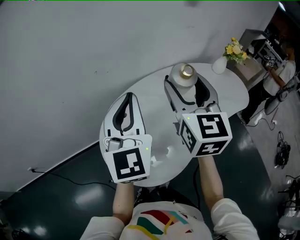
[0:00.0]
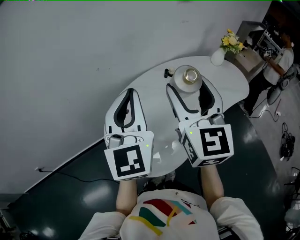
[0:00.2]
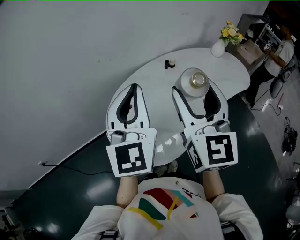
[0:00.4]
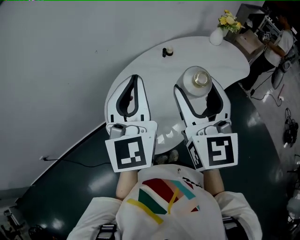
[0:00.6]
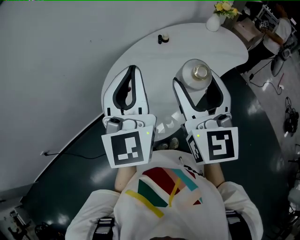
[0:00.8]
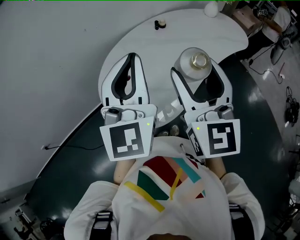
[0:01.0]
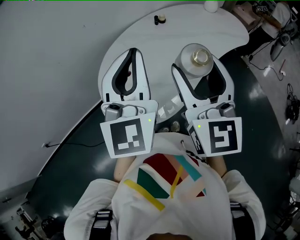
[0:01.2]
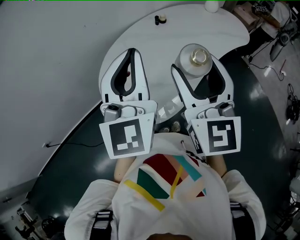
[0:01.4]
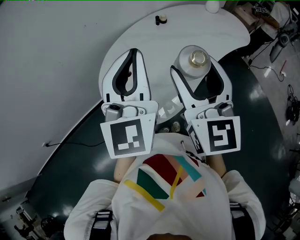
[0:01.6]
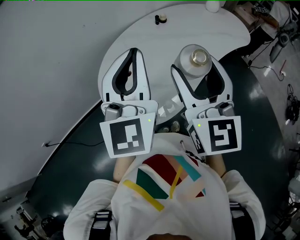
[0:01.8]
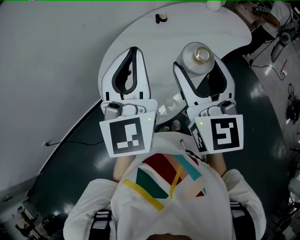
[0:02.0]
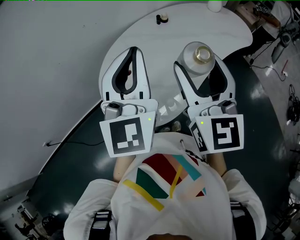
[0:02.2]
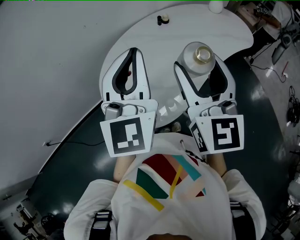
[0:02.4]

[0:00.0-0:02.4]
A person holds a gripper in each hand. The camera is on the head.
0:00.0 to 0:01.2: The left gripper shifts some 15 cm backward and to the right. The right gripper heads backward, covering roughly 20 cm.
0:01.2 to 0:02.4: The grippers stay close to where they were, moving slightly.

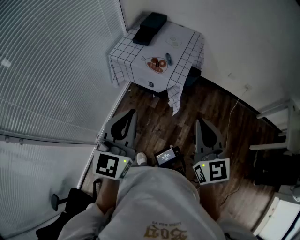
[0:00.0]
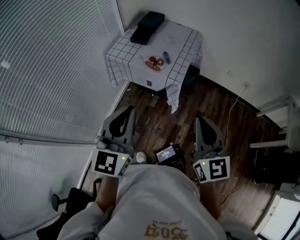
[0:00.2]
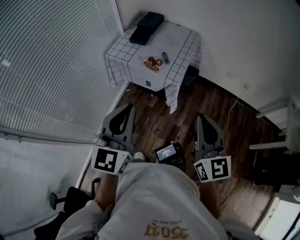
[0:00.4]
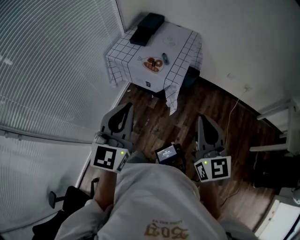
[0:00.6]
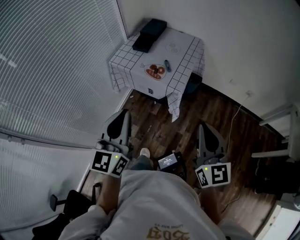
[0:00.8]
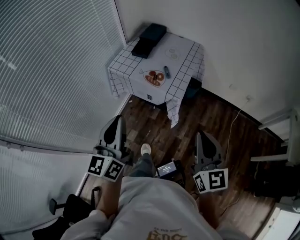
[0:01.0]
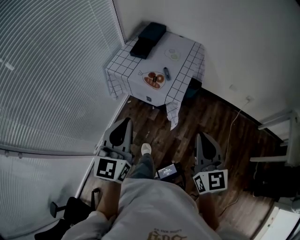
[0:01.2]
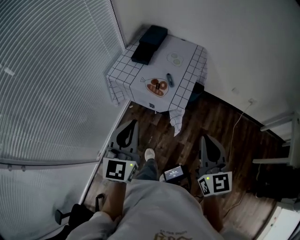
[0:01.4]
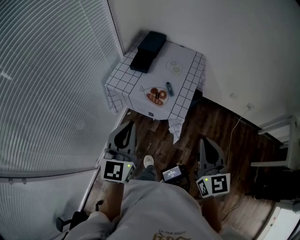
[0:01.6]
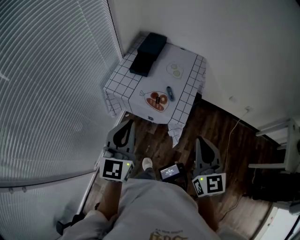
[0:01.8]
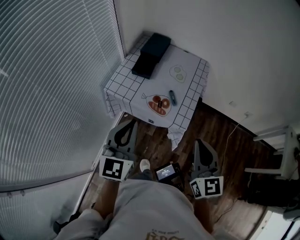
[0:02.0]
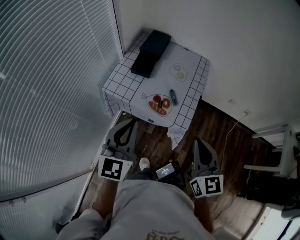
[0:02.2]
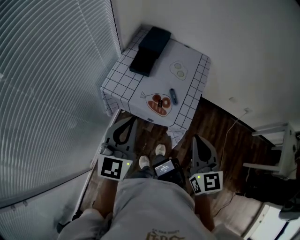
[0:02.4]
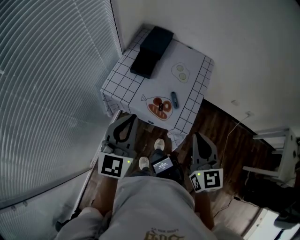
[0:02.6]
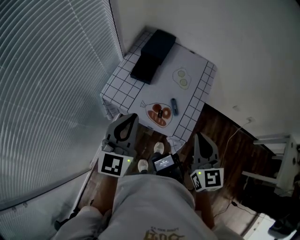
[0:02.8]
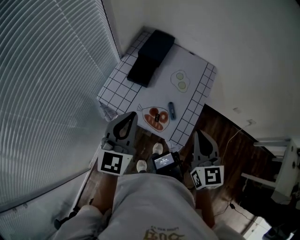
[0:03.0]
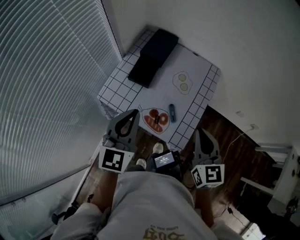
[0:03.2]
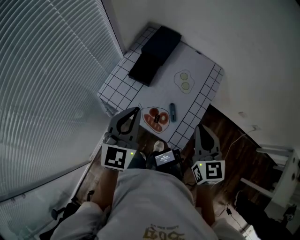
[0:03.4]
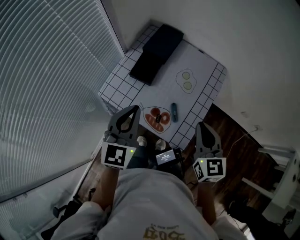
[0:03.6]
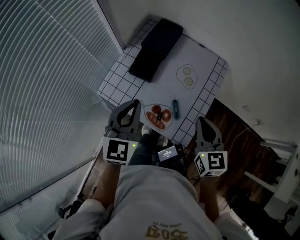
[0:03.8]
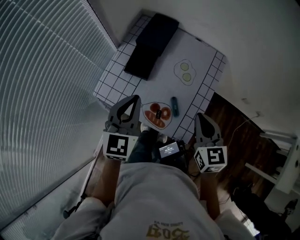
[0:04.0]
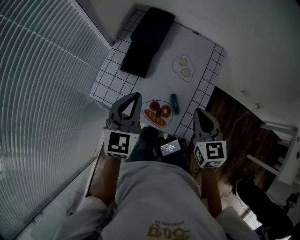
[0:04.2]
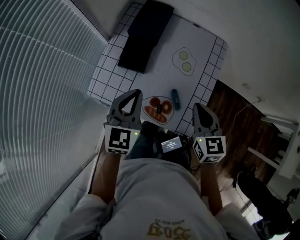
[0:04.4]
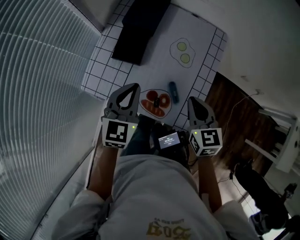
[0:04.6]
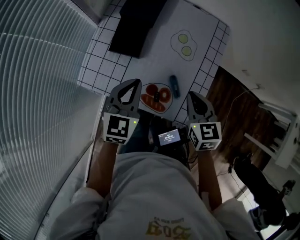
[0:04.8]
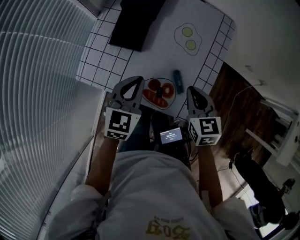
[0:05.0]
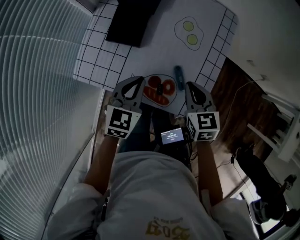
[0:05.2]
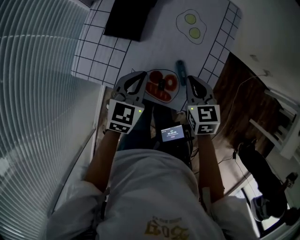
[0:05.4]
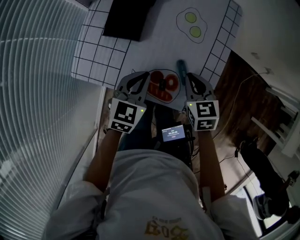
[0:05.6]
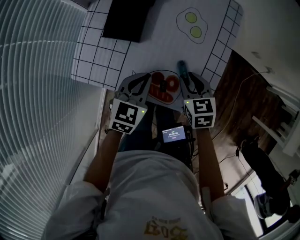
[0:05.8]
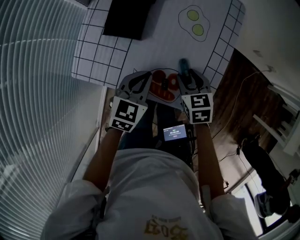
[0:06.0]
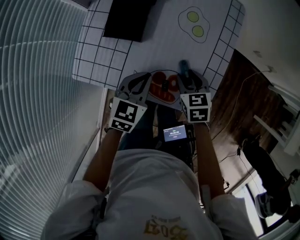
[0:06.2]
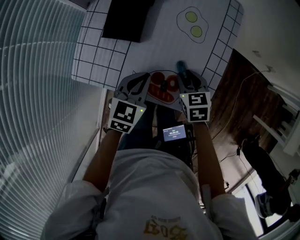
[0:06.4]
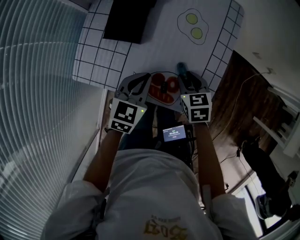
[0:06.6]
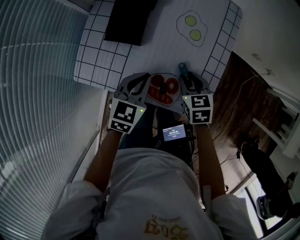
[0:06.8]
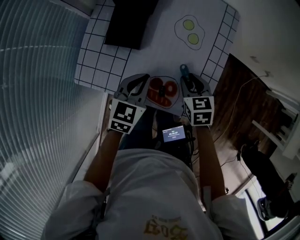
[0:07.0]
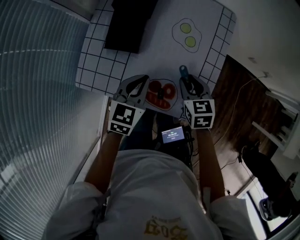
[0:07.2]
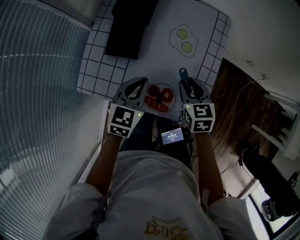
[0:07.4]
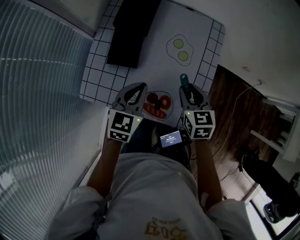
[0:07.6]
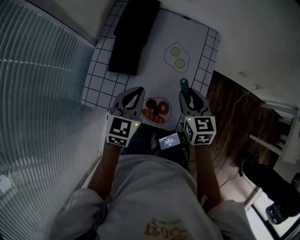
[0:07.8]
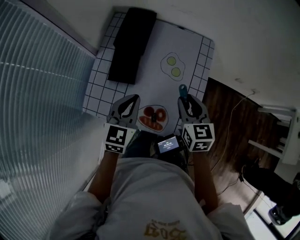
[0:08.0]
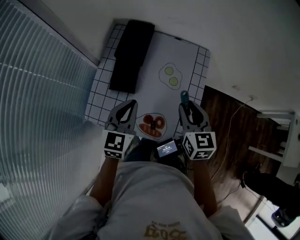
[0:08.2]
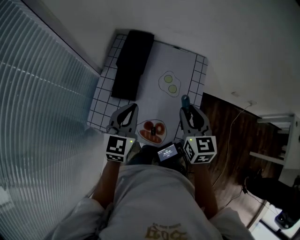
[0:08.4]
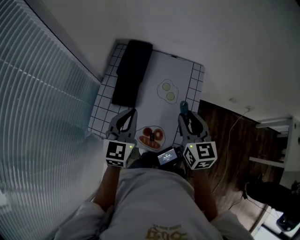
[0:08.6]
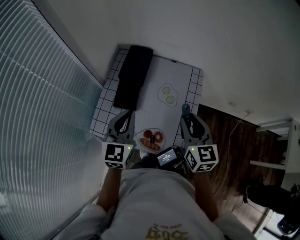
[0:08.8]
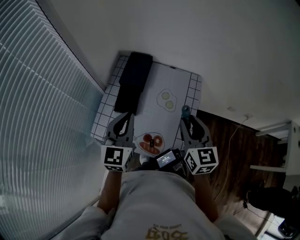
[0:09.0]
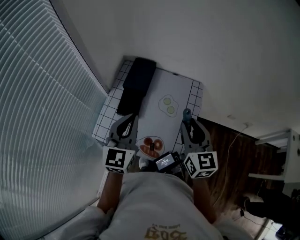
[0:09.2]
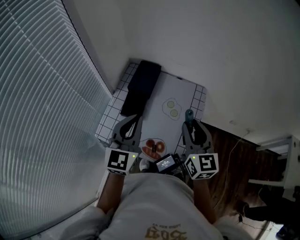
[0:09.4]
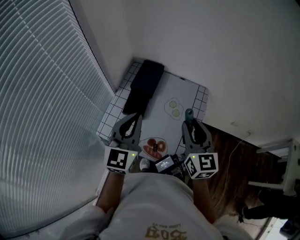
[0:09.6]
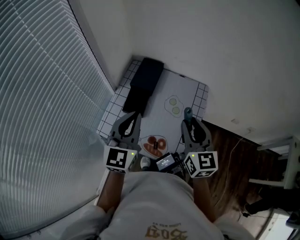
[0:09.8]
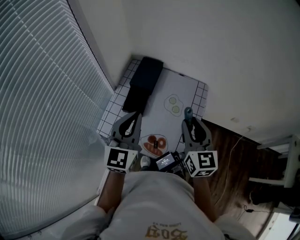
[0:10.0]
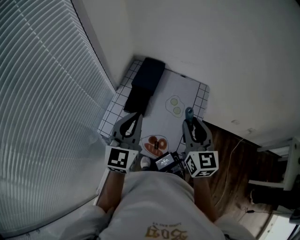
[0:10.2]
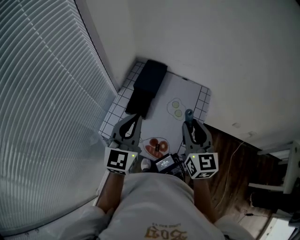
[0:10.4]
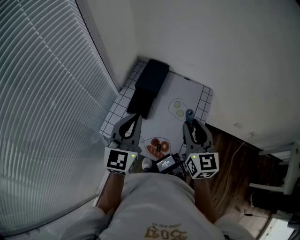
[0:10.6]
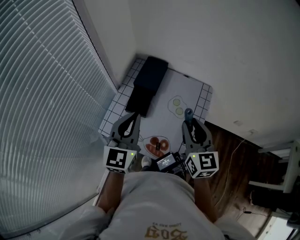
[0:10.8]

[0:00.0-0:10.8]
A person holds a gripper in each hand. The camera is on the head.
0:00.0 to 0:01.6: Both grippers move forward, approximately 15 cm.
0:01.6 to 0:03.0: The two grippers go about 25 cm forward.
0:03.0 to 0:04.6: The two grippers go about 20 cm downward and forward.
0:04.6 to 0:06.2: The grippers both shift downward by about 15 cm. The right gripper rotates approximately 20 degrees, and opens up. Meanwhile the left gripper swivels about 20 degrees.
0:06.2 to 0:07.8: The grippers both shift upward by some 10 cm. The right gripper rotates about 20 degrees.
0:07.8 to 0:09.2: Both grippers travel together upward, some 20 cm. The left gripper changes its angle by approximately 30 degrees; the right gripper swivels approximately 30 degrees.
0:09.2 to 0:10.8: There are only small adjustments of the grippers.

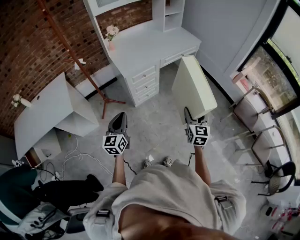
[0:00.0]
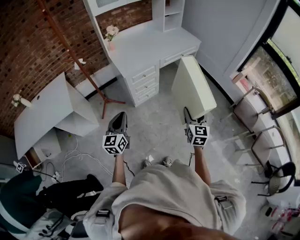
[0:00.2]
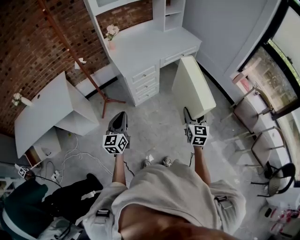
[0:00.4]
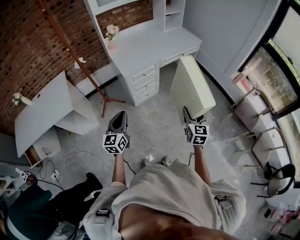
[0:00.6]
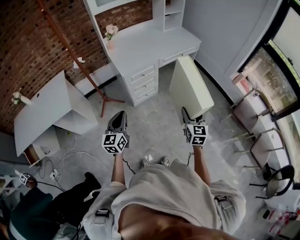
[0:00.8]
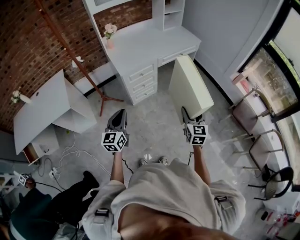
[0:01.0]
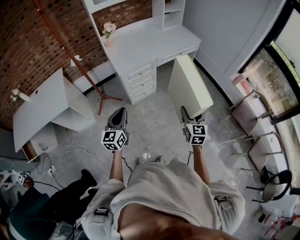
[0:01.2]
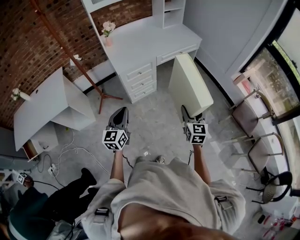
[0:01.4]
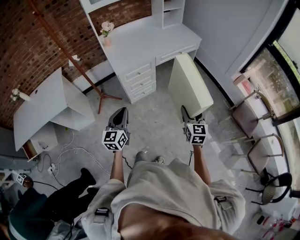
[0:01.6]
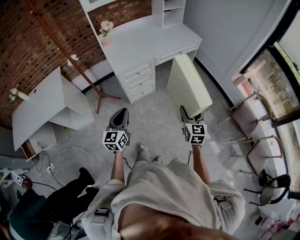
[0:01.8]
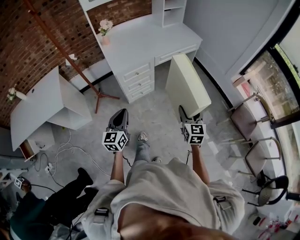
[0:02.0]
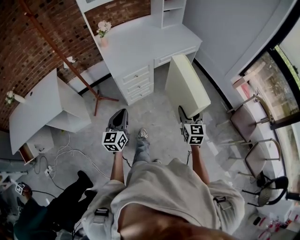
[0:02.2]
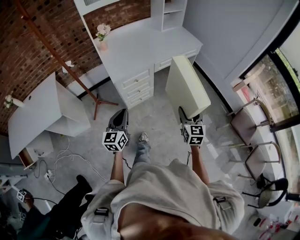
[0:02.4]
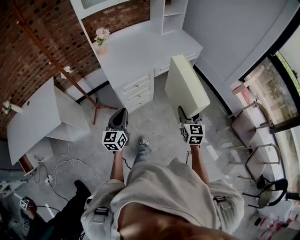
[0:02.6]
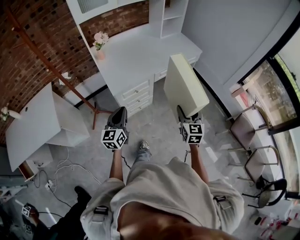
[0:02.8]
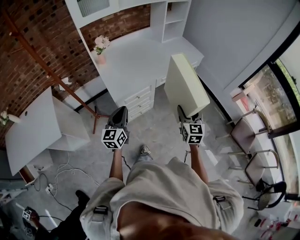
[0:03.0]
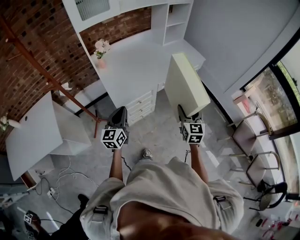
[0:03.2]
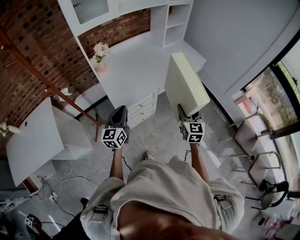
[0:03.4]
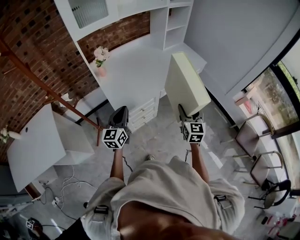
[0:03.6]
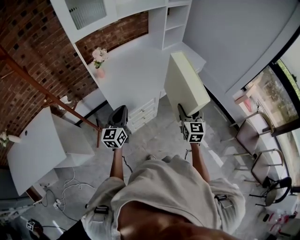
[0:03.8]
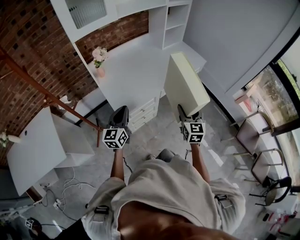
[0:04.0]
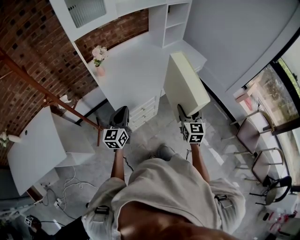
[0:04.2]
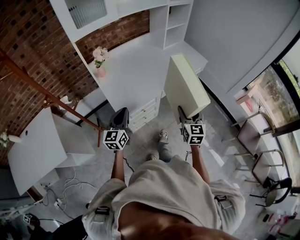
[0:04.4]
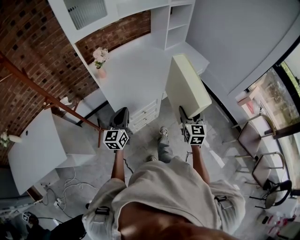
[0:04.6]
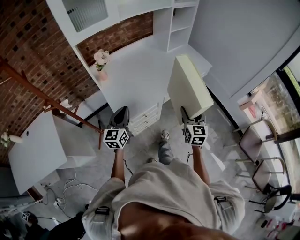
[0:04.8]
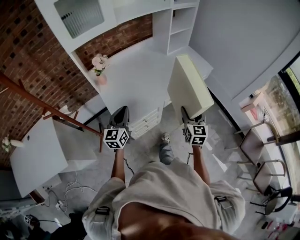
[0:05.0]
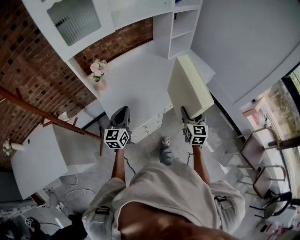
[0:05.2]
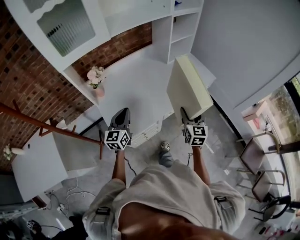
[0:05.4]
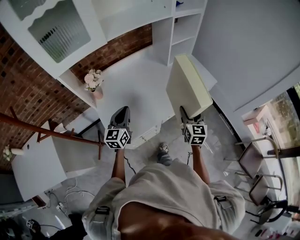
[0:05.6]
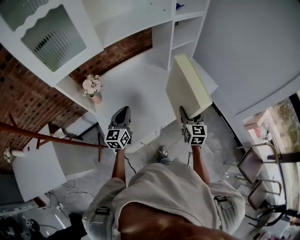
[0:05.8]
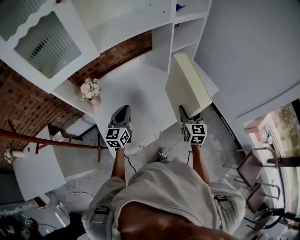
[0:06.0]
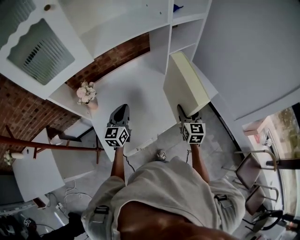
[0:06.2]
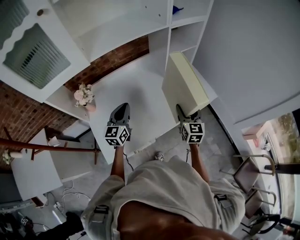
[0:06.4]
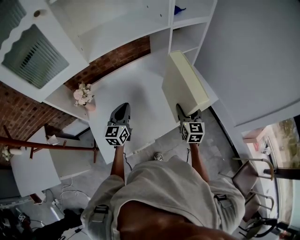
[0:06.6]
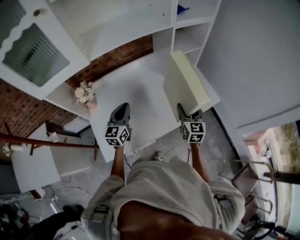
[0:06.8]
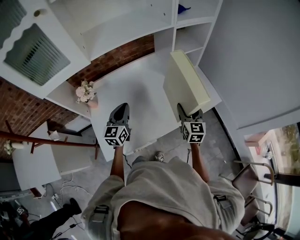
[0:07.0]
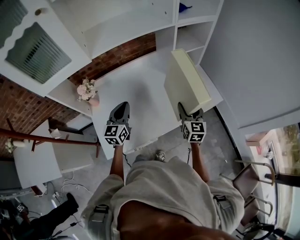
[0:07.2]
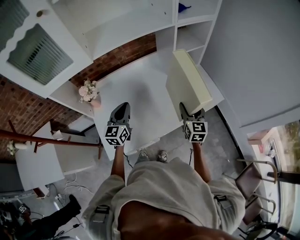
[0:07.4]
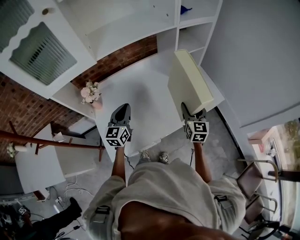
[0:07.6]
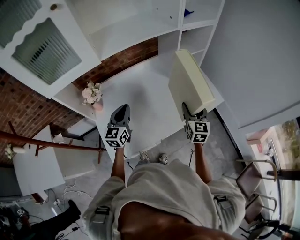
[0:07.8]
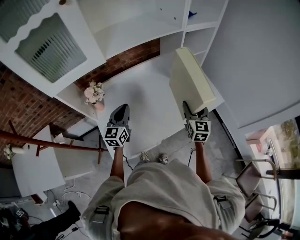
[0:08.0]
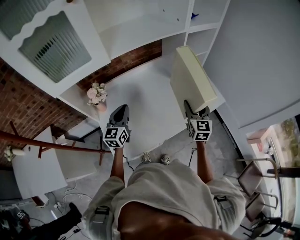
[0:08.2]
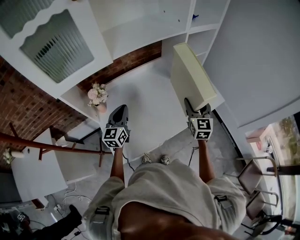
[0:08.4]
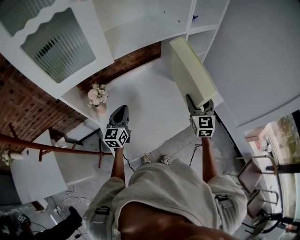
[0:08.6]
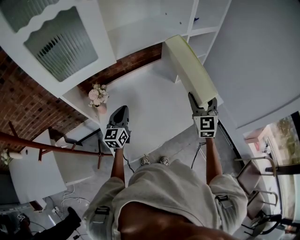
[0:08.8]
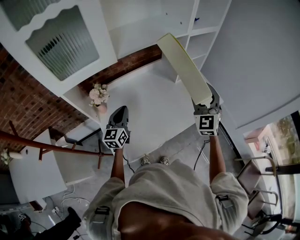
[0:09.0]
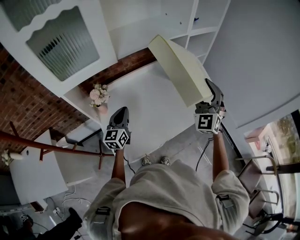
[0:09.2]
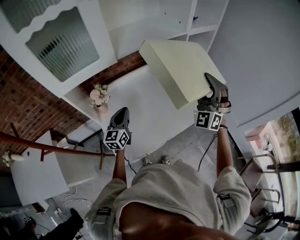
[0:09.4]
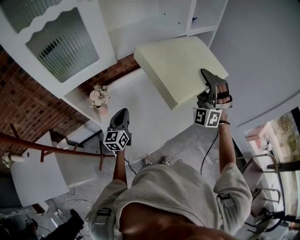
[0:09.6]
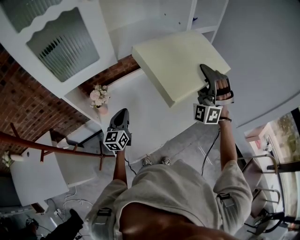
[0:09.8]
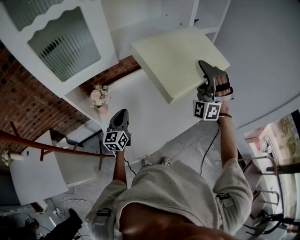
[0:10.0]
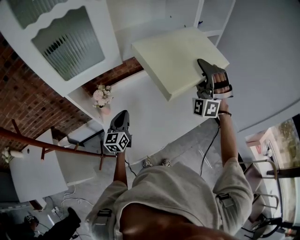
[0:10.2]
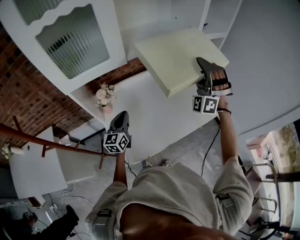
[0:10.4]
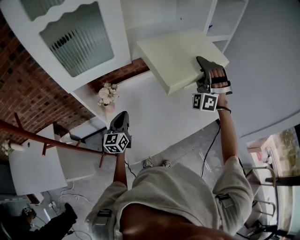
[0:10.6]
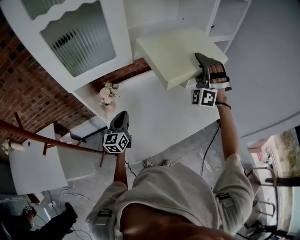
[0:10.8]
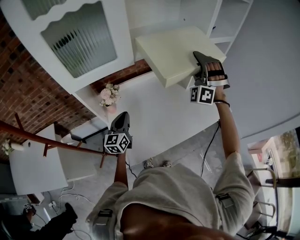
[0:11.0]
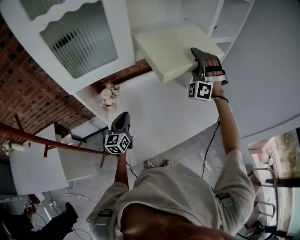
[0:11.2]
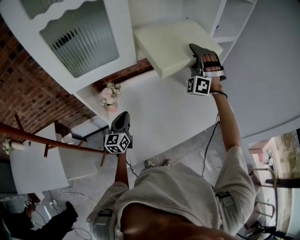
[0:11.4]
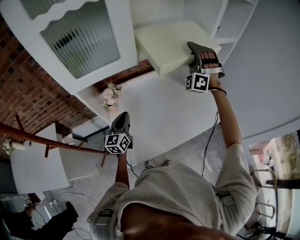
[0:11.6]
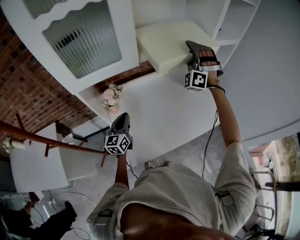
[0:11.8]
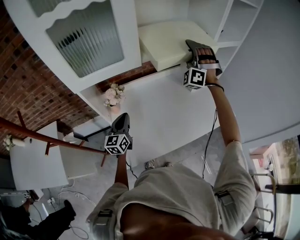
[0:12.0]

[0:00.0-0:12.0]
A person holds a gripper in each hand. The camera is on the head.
0:00.0 to 0:01.6: The right gripper is displaced to the right and forward by roughly 10 cm, while the left gripper travels to the right by approximately 10 cm.
0:01.6 to 0:03.0: The grippers both shift forward by roughly 25 cm.
0:03.0 to 0:04.4: Both grippers travel together forward and to the left, approximately 15 cm.
0:04.4 to 0:06.0: Both grippers travel together forward, some 35 cm.
0:06.0 to 0:07.6: Both grippers travel together forward, approximately 5 cm.
0:07.6 to 0:09.0: The left gripper moves to the left, roughly 10 cm. Meanwhile the right gripper goes roughly 20 cm upward and to the left, and changes its angle by roughly 40 degrees.
0:09.0 to 0:10.4: The right gripper travels forward, upward and to the left by approximately 10 cm, and twists approximately 60 degrees counterclockwise, seen from behind.
0:10.4 to 0:12.0: The right gripper goes about 15 cm forward and to the left; the left gripper is displaced to the left by some 5 cm.
